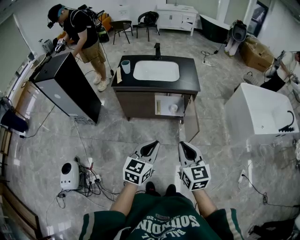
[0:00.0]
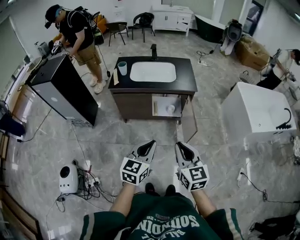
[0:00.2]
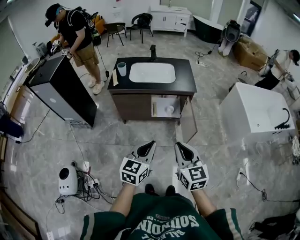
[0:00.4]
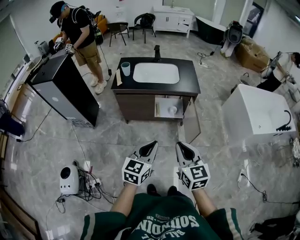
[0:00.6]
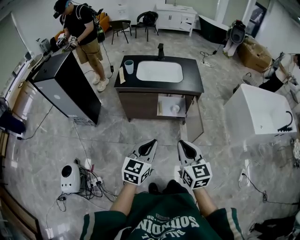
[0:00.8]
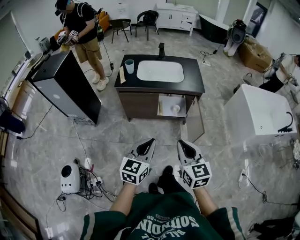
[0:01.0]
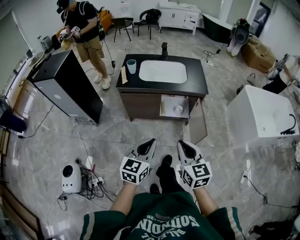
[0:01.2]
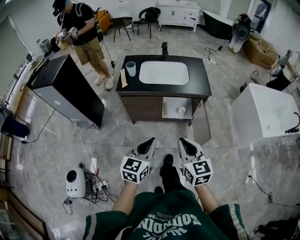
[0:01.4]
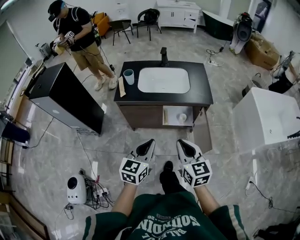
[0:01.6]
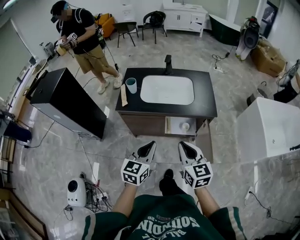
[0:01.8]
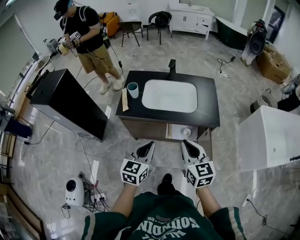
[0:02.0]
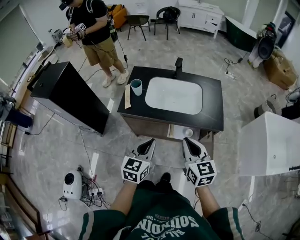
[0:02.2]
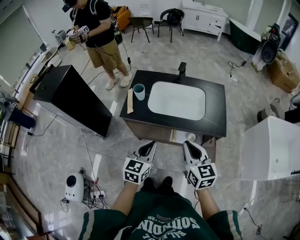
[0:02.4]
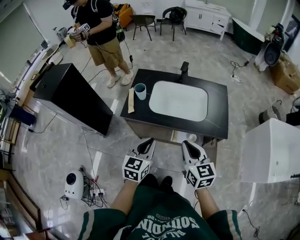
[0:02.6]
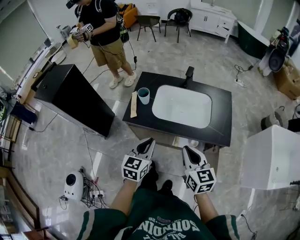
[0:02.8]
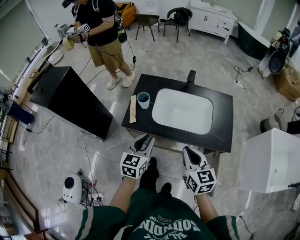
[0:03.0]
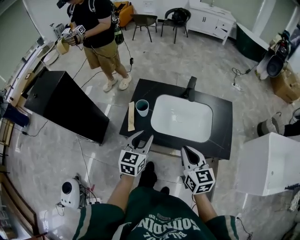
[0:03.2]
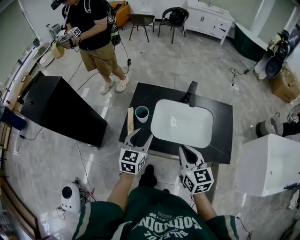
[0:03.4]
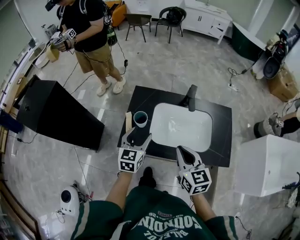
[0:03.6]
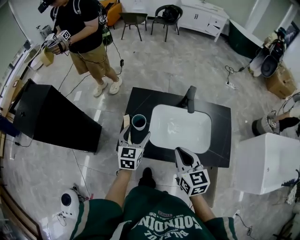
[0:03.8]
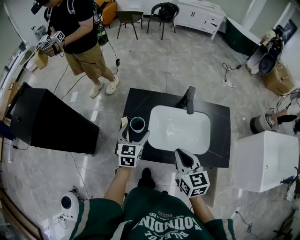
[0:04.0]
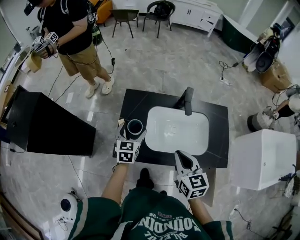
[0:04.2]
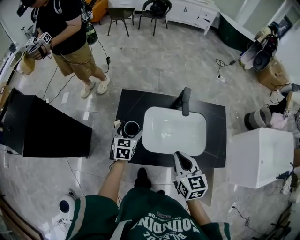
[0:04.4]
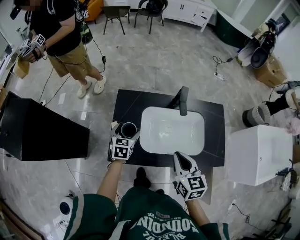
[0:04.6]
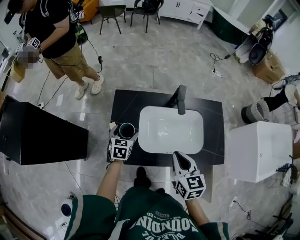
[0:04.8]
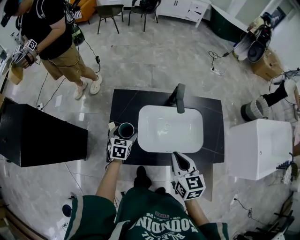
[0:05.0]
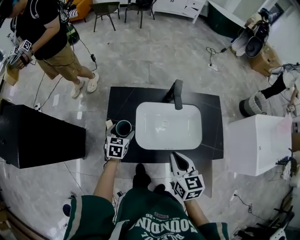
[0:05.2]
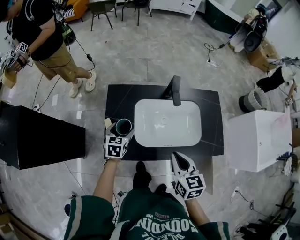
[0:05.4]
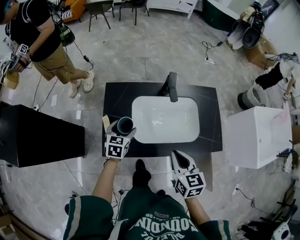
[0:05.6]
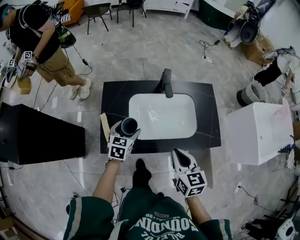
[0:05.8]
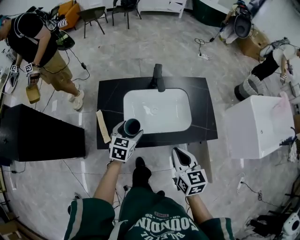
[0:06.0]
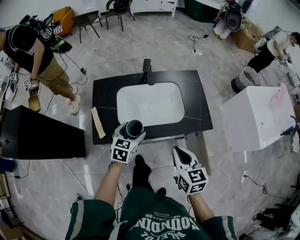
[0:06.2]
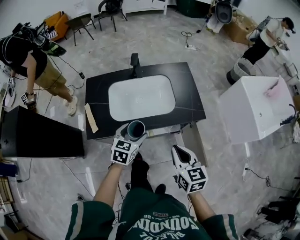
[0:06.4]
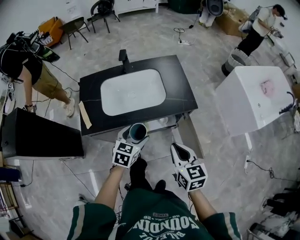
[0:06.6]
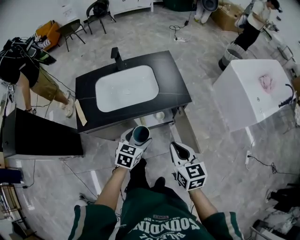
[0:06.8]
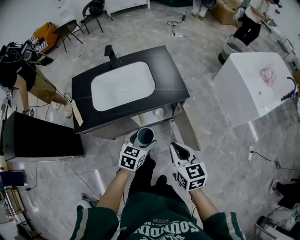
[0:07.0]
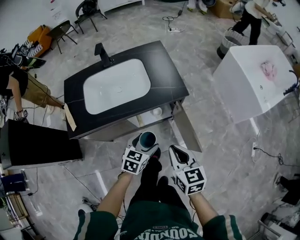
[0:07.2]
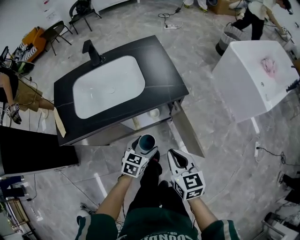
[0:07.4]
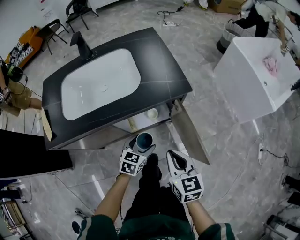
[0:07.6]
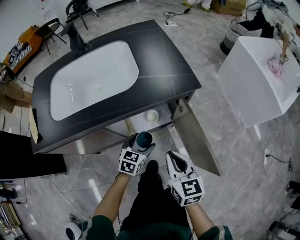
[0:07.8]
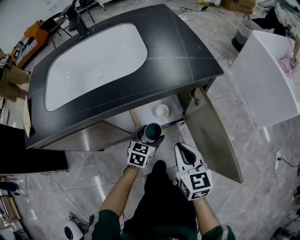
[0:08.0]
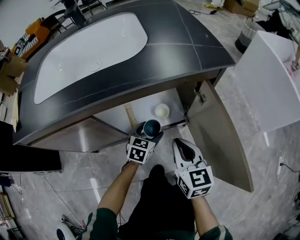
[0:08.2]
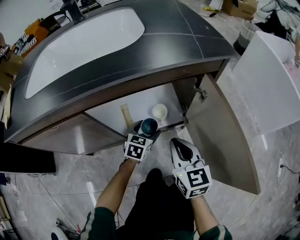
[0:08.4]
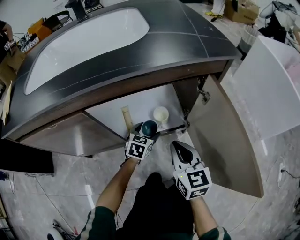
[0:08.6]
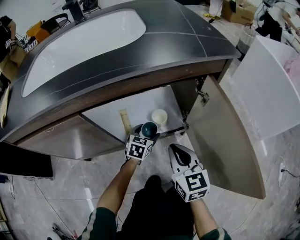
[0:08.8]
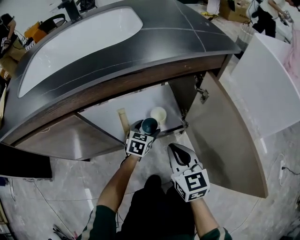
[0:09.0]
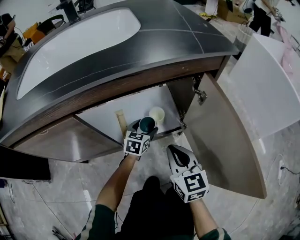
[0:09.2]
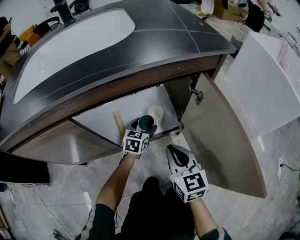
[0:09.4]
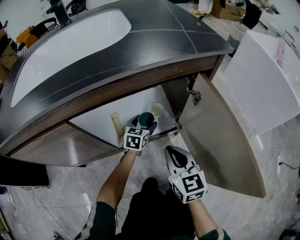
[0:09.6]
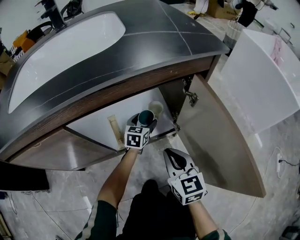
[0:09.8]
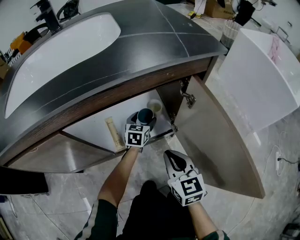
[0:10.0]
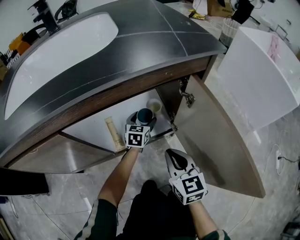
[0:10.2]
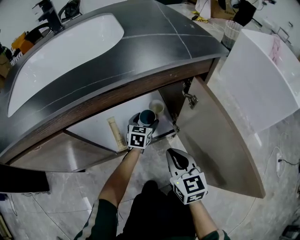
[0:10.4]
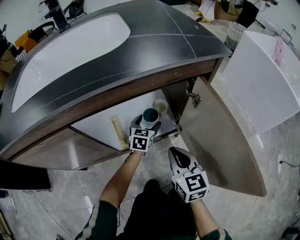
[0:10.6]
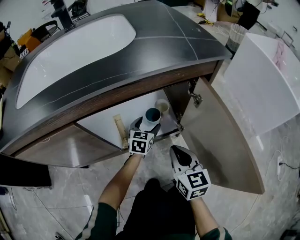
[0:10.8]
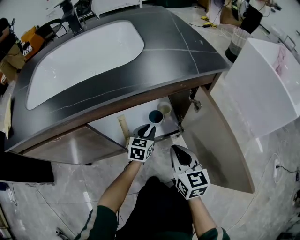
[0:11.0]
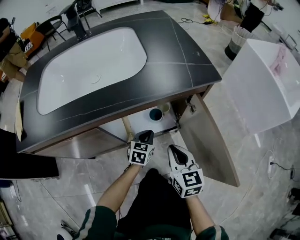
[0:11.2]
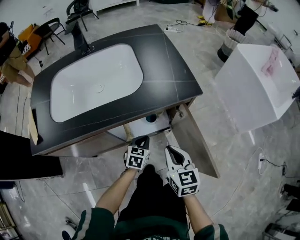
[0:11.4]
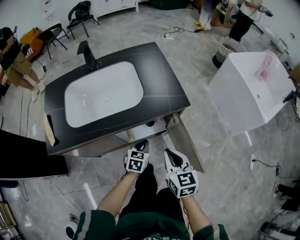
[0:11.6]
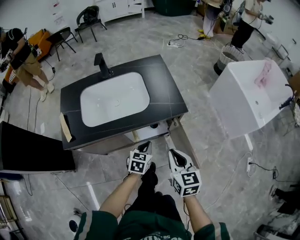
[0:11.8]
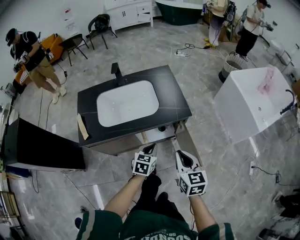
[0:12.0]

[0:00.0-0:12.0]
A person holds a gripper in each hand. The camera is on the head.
0:00.0 to 0:01.6: Both grippers move forward and to the left, about 25 cm.
0:01.6 to 0:03.0: Both grippers move forward, about 35 cm.
0:03.0 to 0:04.4: The grippers both shift forward by some 30 cm. The left gripper opens.
0:04.4 to 0:06.0: The right gripper shifts about 15 cm backward and to the right, while the left gripper shifts about 15 cm to the right and backward.
0:06.0 to 0:07.6: The grippers both shift to the right and downward by about 50 cm. The left gripper turns by roughly 20 degrees.
0:07.6 to 0:09.0: The right gripper is displaced downward by about 30 cm. Meanwhile the left gripper is displaced downward and forward by approximately 35 cm.
0:09.0 to 0:10.4: The left gripper travels forward by approximately 10 cm.
0:10.4 to 0:12.0: The left gripper moves upward and backward, some 70 cm, and closes its fingers. Meanwhile the right gripper goes about 60 cm upward.

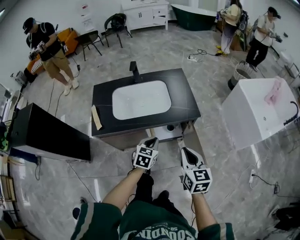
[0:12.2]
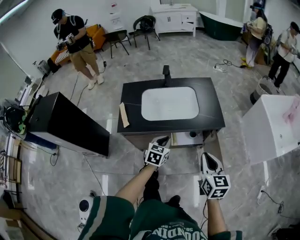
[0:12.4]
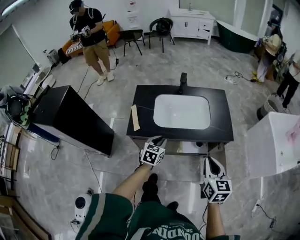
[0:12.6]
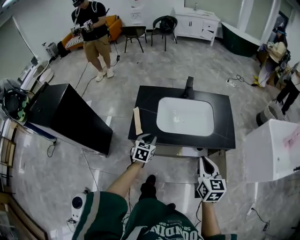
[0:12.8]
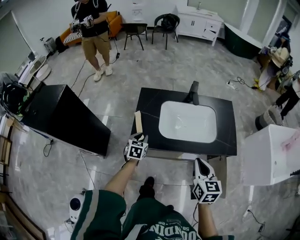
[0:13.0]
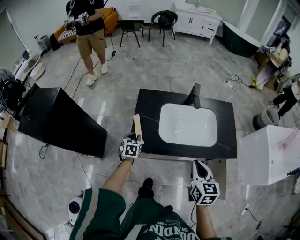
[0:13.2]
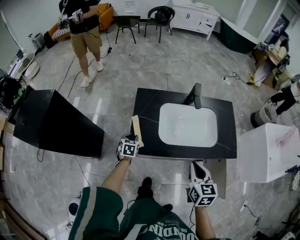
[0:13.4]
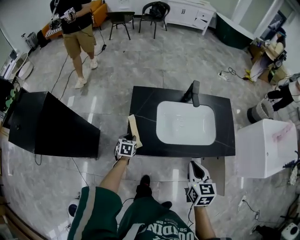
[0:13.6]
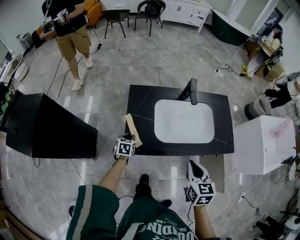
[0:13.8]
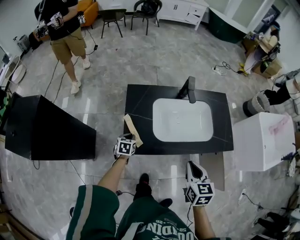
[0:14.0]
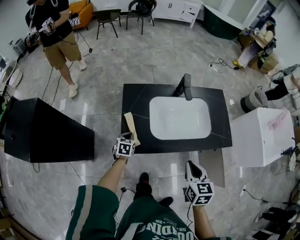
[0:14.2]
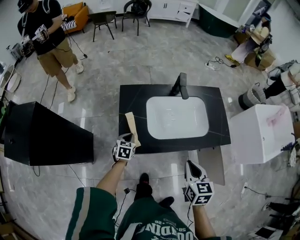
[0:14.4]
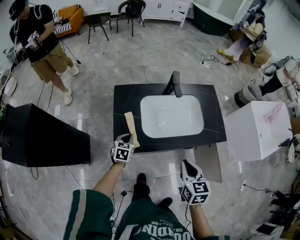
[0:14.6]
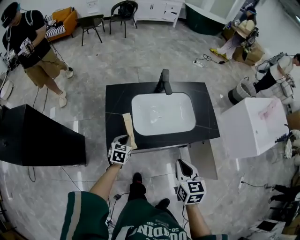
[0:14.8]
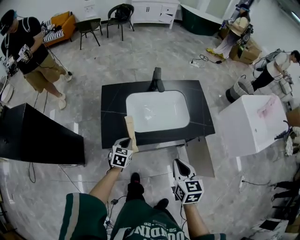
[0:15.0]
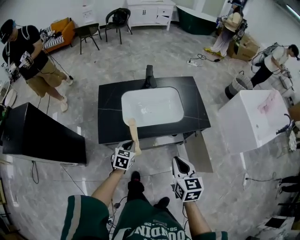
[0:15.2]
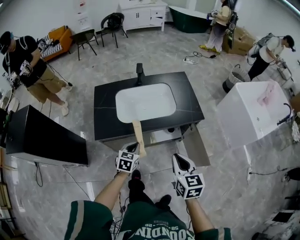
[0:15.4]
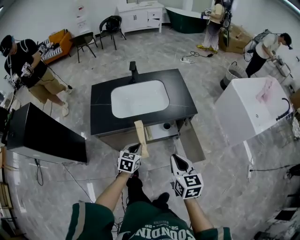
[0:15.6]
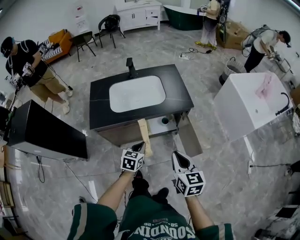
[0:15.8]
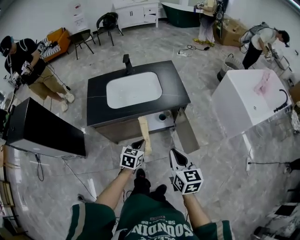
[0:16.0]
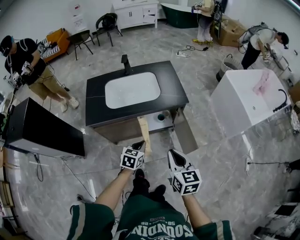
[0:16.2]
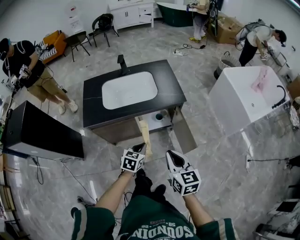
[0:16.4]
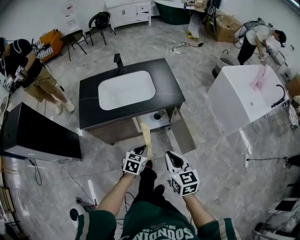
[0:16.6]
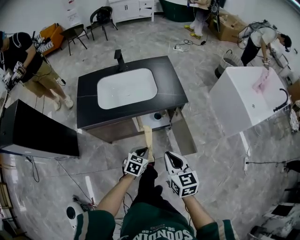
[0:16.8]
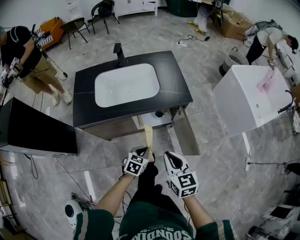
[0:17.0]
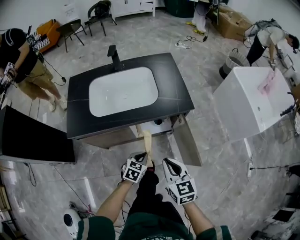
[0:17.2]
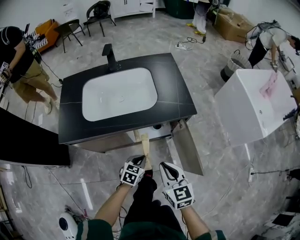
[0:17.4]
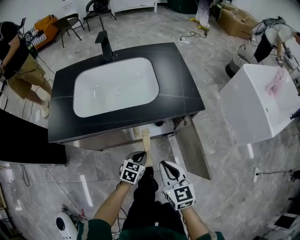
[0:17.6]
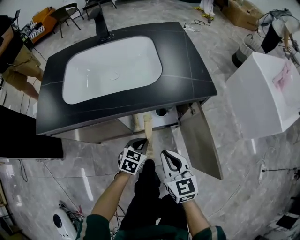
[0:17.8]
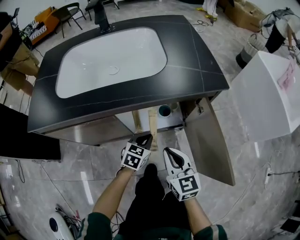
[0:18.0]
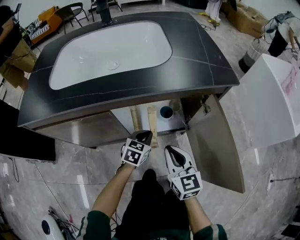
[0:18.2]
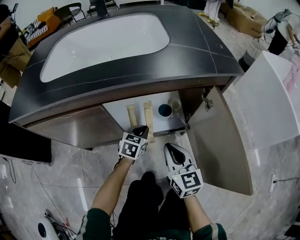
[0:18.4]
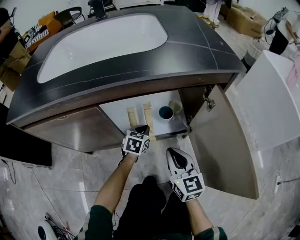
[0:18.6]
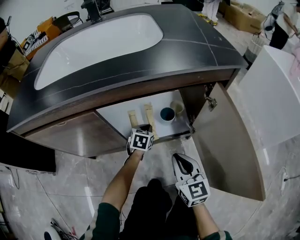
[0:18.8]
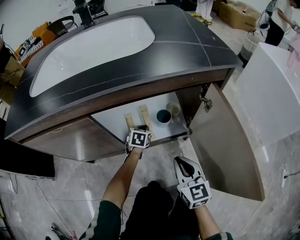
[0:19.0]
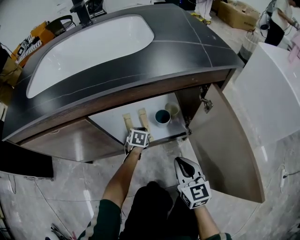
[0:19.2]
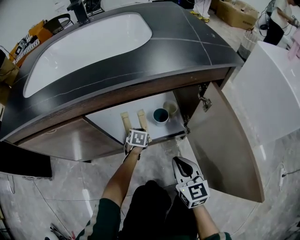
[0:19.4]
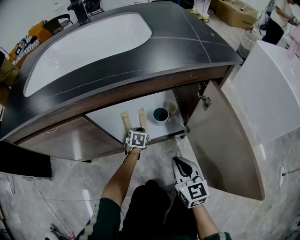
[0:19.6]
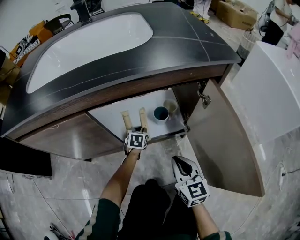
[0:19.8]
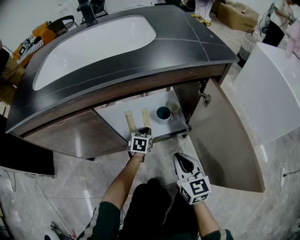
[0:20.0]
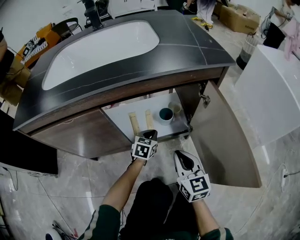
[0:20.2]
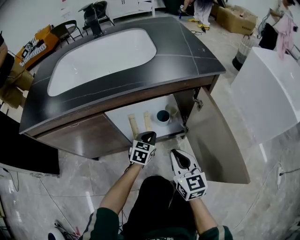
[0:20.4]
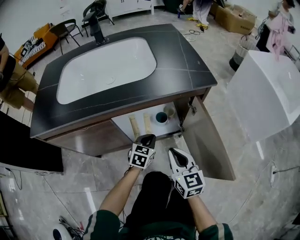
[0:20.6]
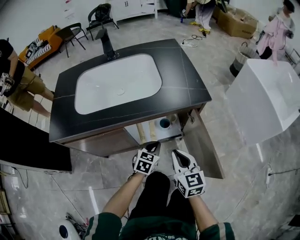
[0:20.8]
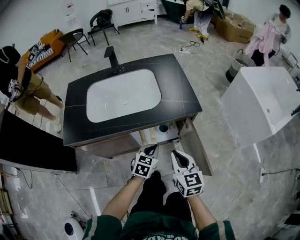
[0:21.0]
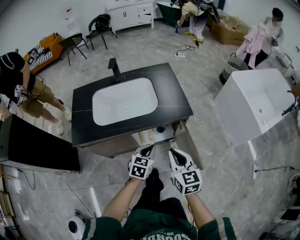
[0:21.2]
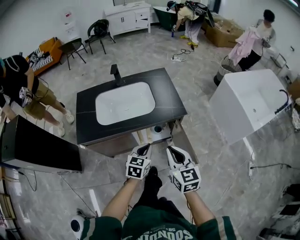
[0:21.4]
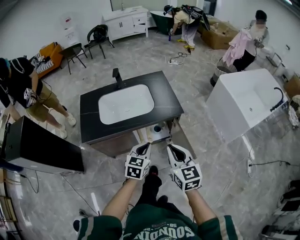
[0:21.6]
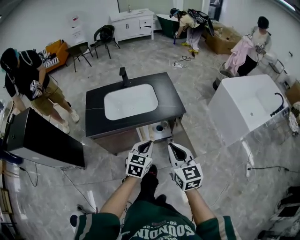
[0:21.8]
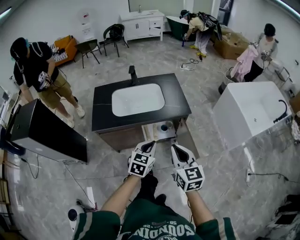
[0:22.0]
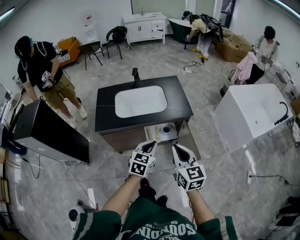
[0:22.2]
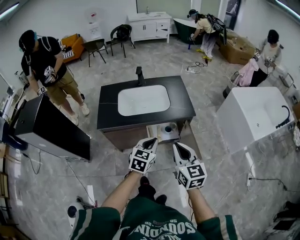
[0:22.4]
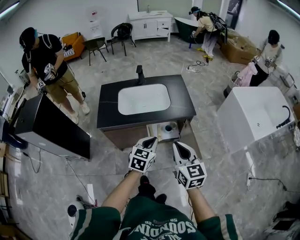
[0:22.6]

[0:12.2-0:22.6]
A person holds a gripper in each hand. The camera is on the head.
0:12.2 to 0:13.6: Both grippers travel together to the left and forward, approximately 50 cm. The left gripper rotates about 30 degrees.
0:13.6 to 0:15.2: The left gripper goes about 30 cm to the right, backward and upward, and turns by about 20 degrees. Meanwhile the right gripper travels to the right and backward by roughly 20 cm.
0:15.2 to 0:16.6: The grippers both shift to the right and backward by approximately 30 cm.
0:16.6 to 0:18.2: Both grippers move downward and forward, some 60 cm.
0:18.2 to 0:19.6: The left gripper goes some 25 cm downward and forward; the right gripper is displaced downward and to the right by approximately 15 cm.
0:19.6 to 0:21.2: The two grippers go about 60 cm upward. The left gripper changes its angle by approximately 20 degrees.
0:21.2 to 0:22.6: Both grippers travel together upward and backward, about 25 cm.

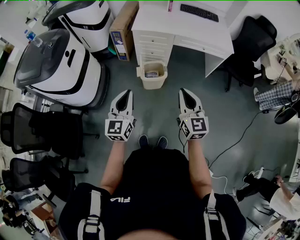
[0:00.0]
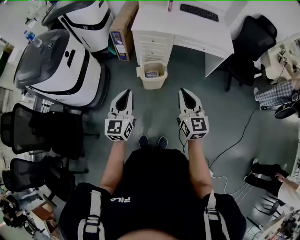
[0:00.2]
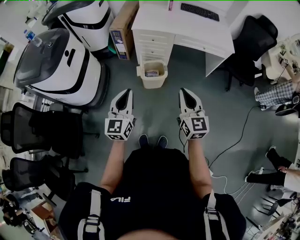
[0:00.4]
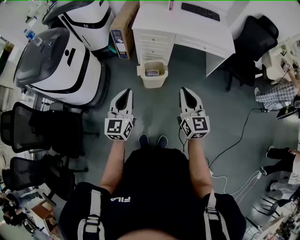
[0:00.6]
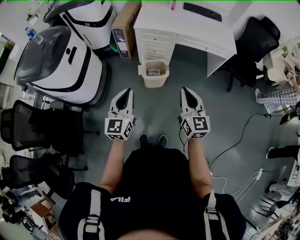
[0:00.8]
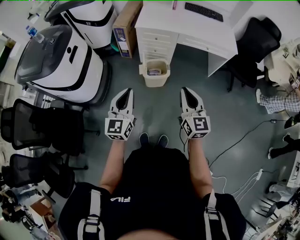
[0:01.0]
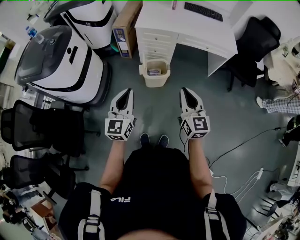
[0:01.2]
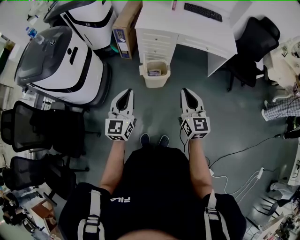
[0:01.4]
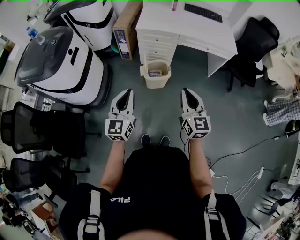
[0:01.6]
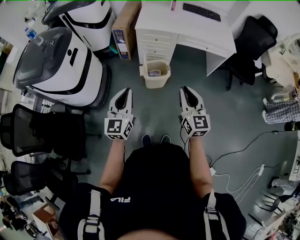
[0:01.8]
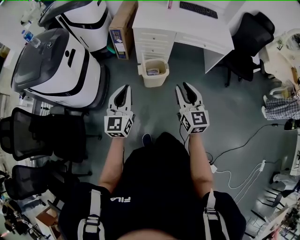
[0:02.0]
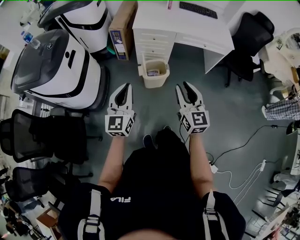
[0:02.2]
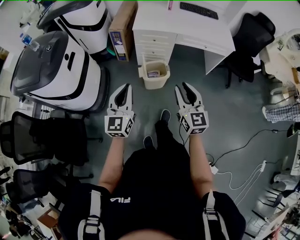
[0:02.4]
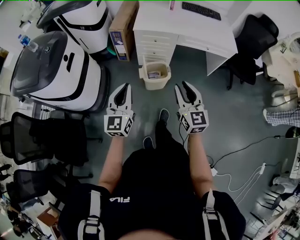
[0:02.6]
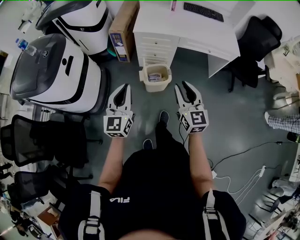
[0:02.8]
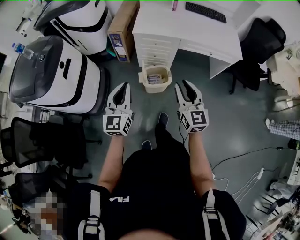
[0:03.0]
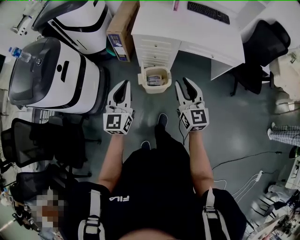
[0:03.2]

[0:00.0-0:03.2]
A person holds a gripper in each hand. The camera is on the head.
0:00.0 to 0:01.6: There are only small adjustments of the grippers.
0:01.6 to 0:03.2: The two grippers go approximately 25 cm forward. The right gripper opens its fingers.
